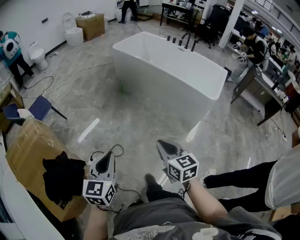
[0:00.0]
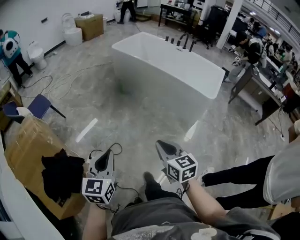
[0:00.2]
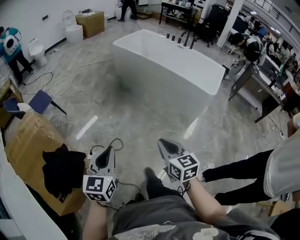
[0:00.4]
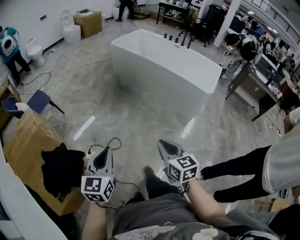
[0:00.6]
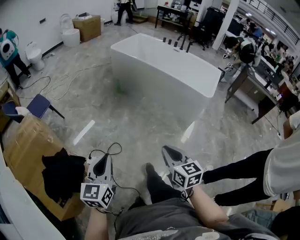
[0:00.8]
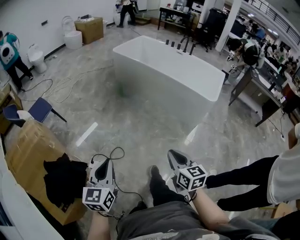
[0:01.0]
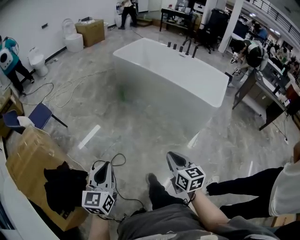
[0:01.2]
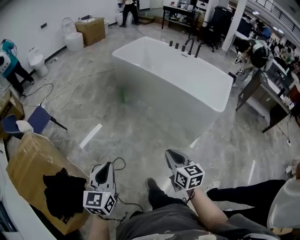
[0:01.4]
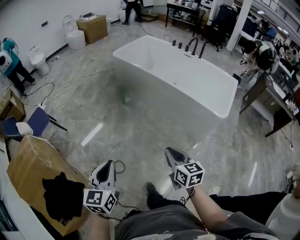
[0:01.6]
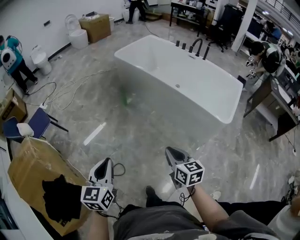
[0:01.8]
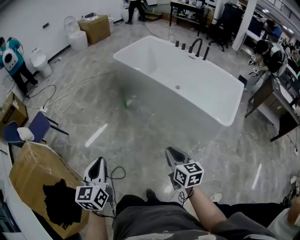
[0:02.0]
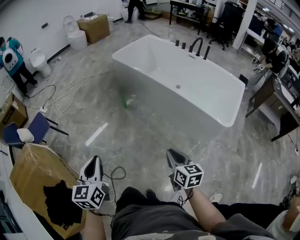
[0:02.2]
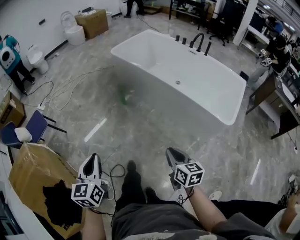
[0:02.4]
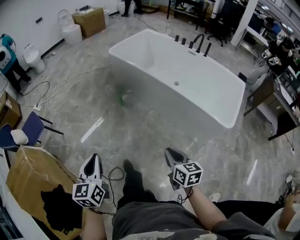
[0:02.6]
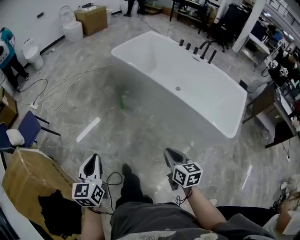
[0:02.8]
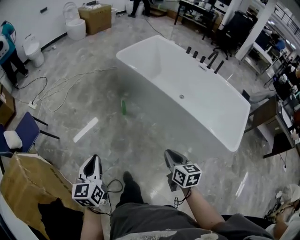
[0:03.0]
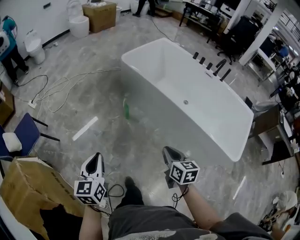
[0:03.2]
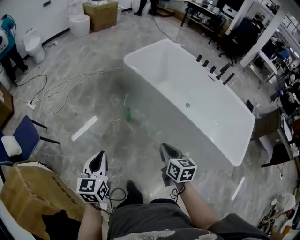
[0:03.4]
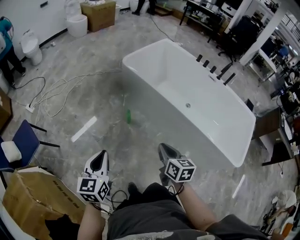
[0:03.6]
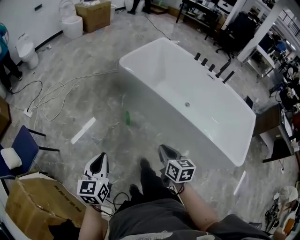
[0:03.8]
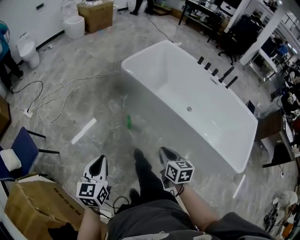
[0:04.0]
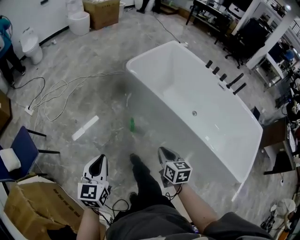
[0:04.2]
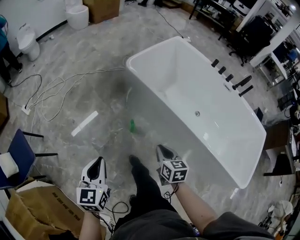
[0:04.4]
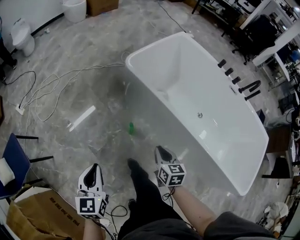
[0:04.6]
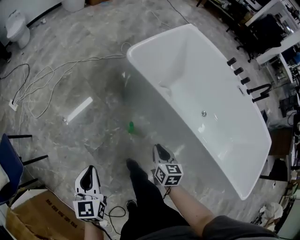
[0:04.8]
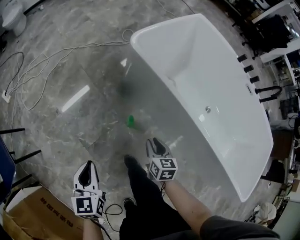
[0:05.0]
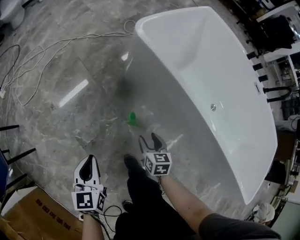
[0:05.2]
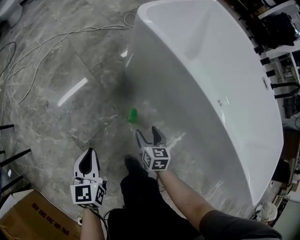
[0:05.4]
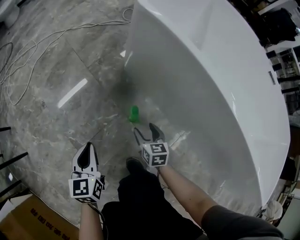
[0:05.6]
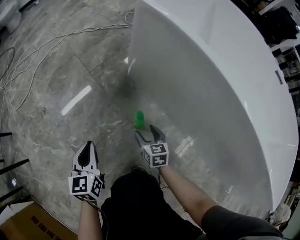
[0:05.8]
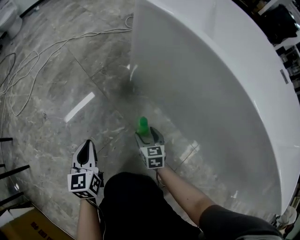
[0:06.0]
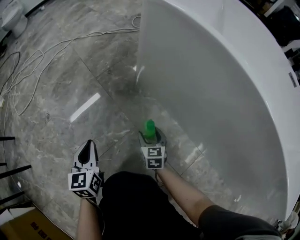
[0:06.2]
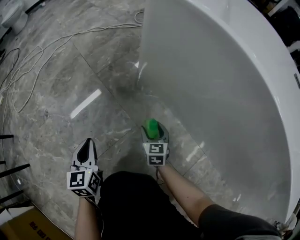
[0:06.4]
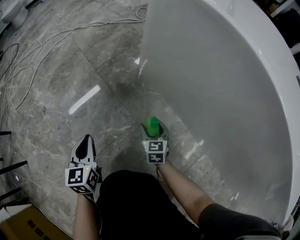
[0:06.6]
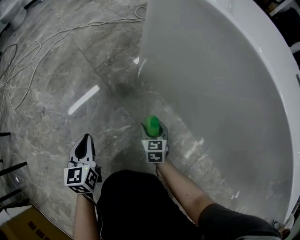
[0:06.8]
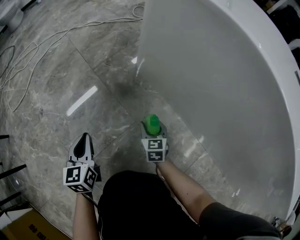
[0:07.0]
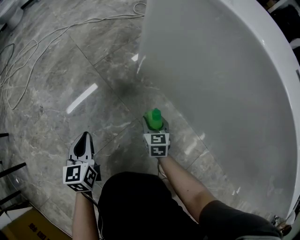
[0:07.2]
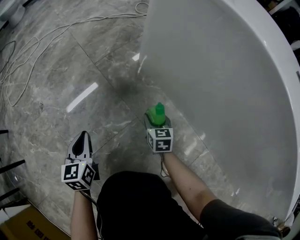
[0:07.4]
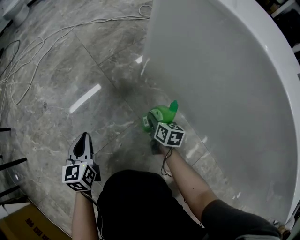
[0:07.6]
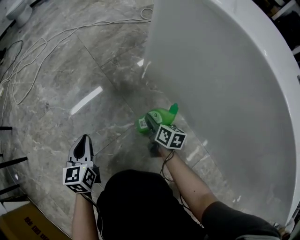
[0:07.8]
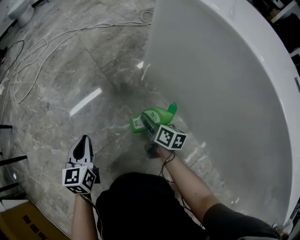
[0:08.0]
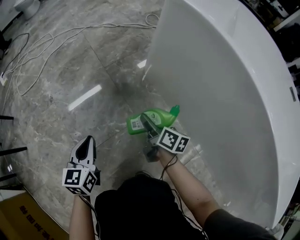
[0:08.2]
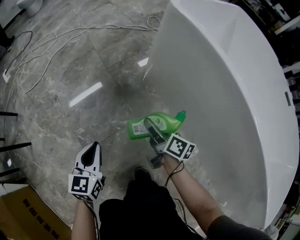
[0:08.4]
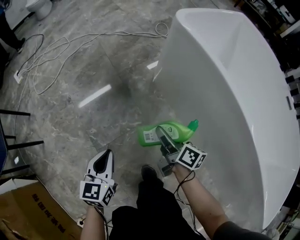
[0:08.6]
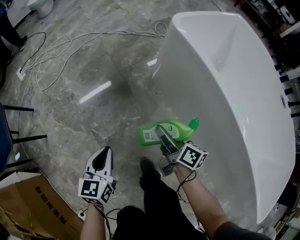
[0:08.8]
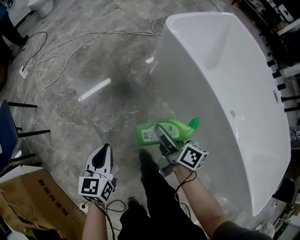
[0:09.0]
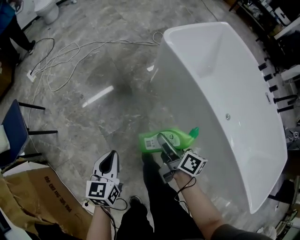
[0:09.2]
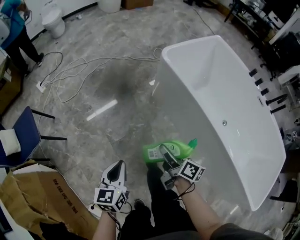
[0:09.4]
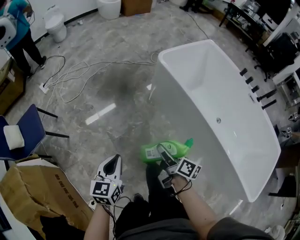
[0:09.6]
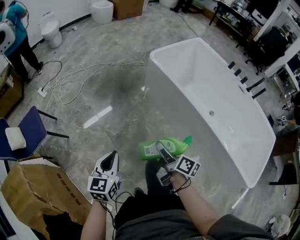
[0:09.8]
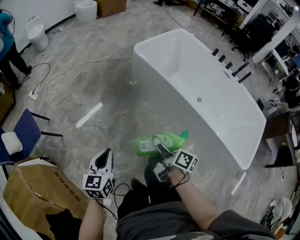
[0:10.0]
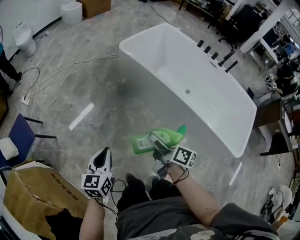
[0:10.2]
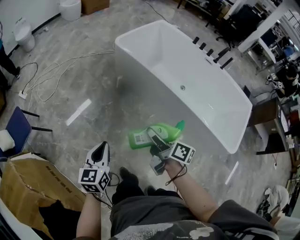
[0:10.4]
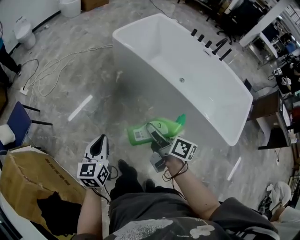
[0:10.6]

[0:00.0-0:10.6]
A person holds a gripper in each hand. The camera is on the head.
0:00.0 to 0:01.6: The left gripper goes roughly 15 cm forward. The right gripper heads forward and to the right, covering roughly 20 cm.
0:01.6 to 0:03.0: The grippers both shift forward by roughly 30 cm.
0:03.0 to 0:04.6: The two grippers travel together, forward, about 40 cm.
0:04.6 to 0:06.0: Both grippers move downward, some 50 cm. The right gripper opens up.
0:06.0 to 0:07.6: The right gripper is displaced downward and forward by about 10 cm, and rotates about 20 degrees; the left gripper goes some 10 cm downward and to the left.
0:07.6 to 0:09.0: The right gripper goes about 50 cm upward, and changes its angle by some 30 degrees; the left gripper shifts roughly 35 cm upward and backward.
0:09.0 to 0:10.6: Both grippers travel together backward and upward, approximately 50 cm.

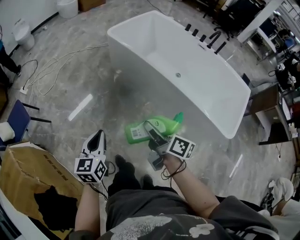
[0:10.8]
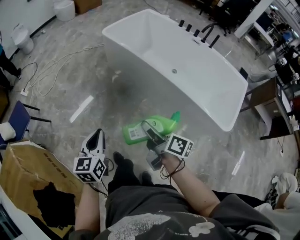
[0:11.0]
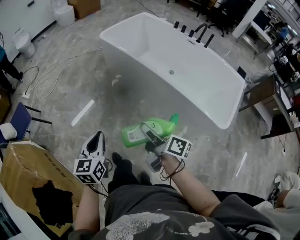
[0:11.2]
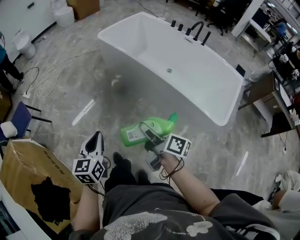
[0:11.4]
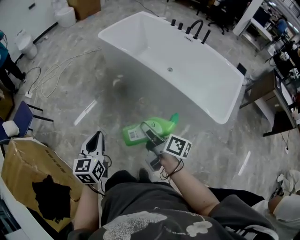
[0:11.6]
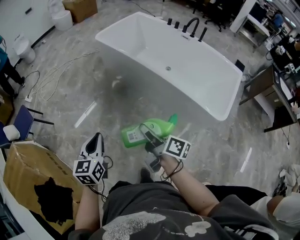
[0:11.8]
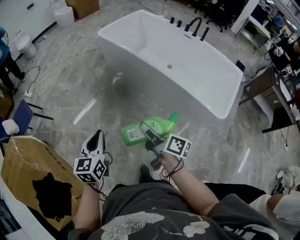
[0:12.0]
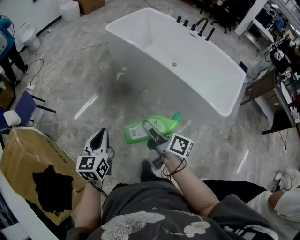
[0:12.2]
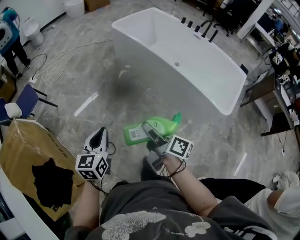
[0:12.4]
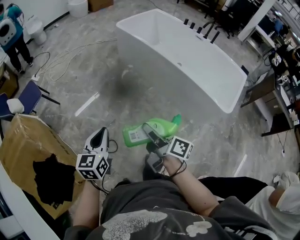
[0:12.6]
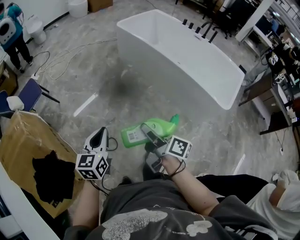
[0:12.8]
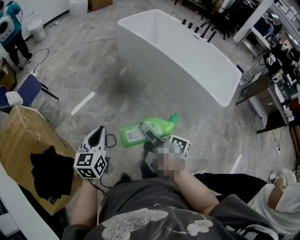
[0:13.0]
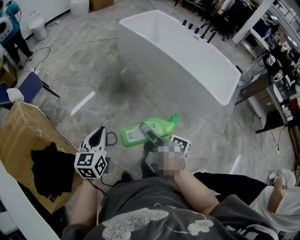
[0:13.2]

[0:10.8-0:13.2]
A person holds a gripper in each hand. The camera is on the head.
0:10.8 to 0:12.0: Both grippers move backward and to the right, some 20 cm.
0:12.0 to 0:13.2: The grippers both shift to the left and backward by about 30 cm.

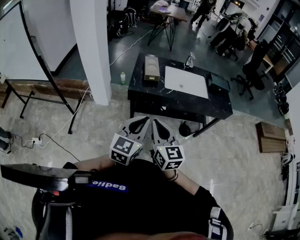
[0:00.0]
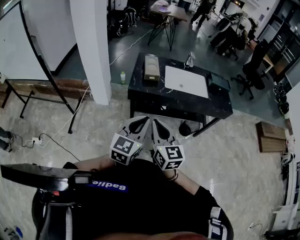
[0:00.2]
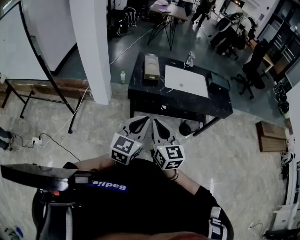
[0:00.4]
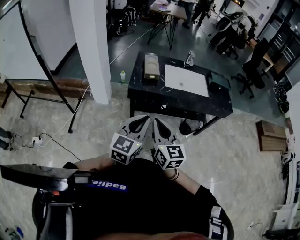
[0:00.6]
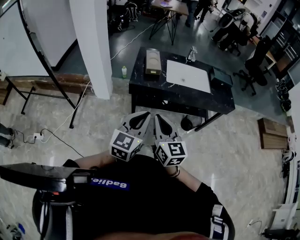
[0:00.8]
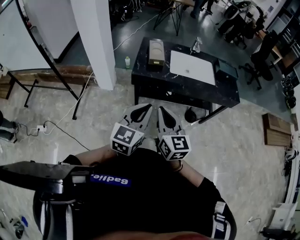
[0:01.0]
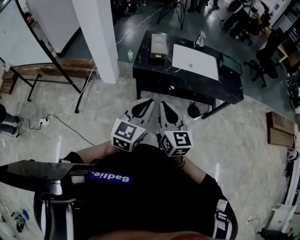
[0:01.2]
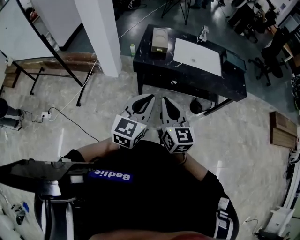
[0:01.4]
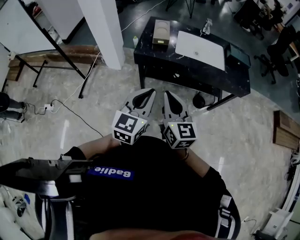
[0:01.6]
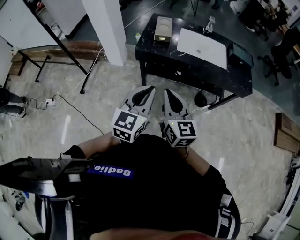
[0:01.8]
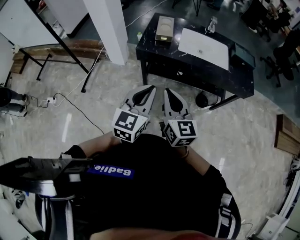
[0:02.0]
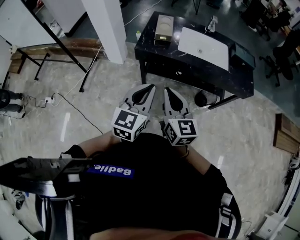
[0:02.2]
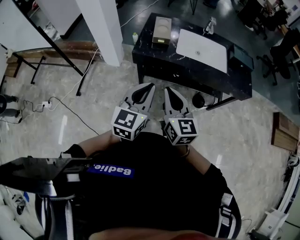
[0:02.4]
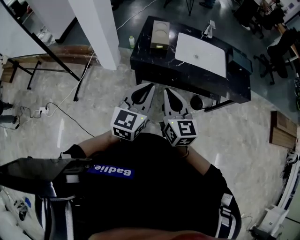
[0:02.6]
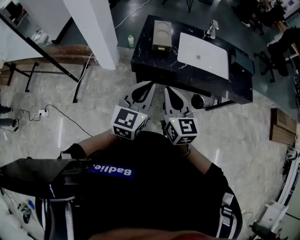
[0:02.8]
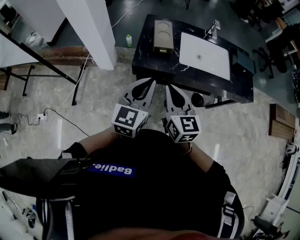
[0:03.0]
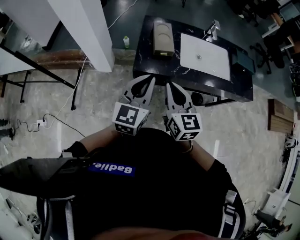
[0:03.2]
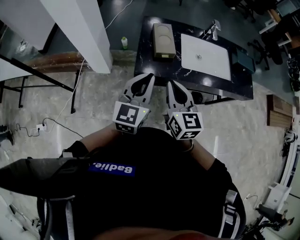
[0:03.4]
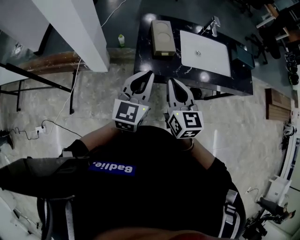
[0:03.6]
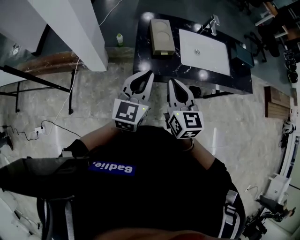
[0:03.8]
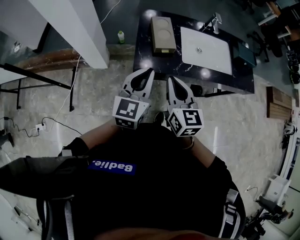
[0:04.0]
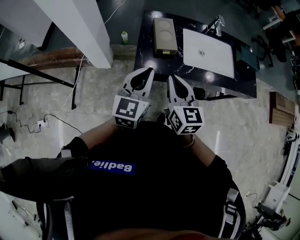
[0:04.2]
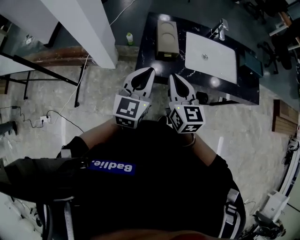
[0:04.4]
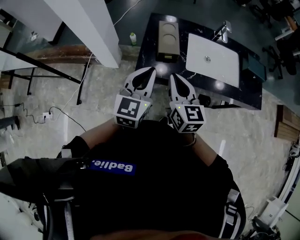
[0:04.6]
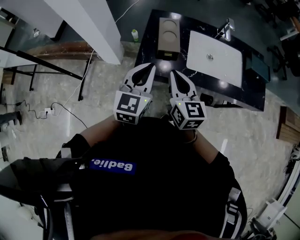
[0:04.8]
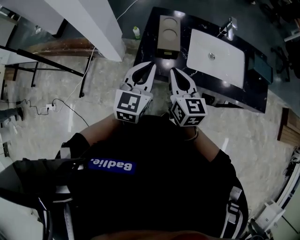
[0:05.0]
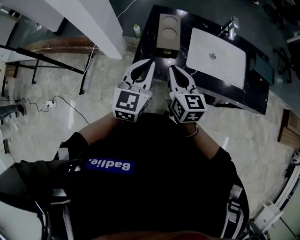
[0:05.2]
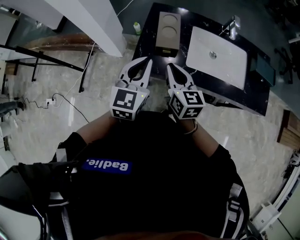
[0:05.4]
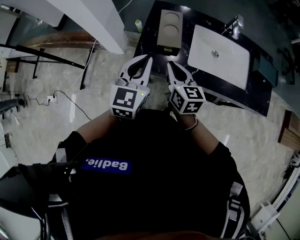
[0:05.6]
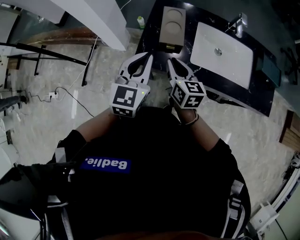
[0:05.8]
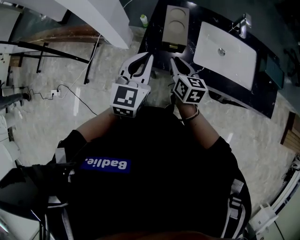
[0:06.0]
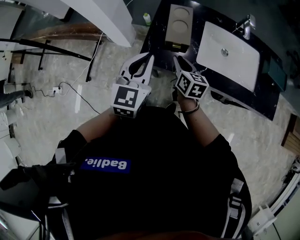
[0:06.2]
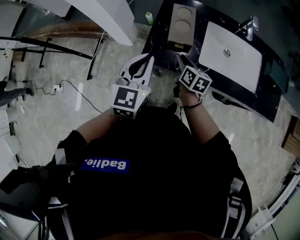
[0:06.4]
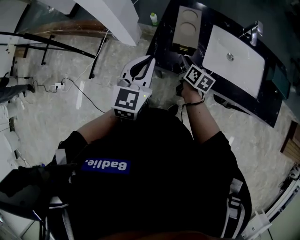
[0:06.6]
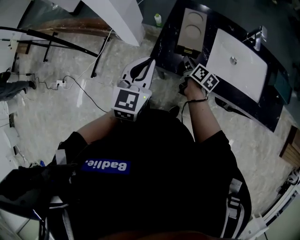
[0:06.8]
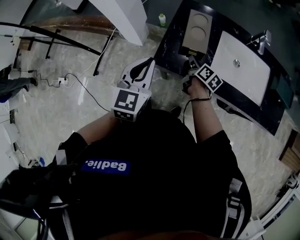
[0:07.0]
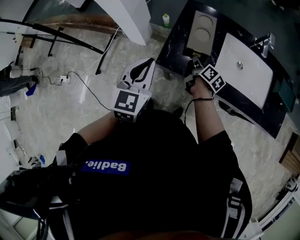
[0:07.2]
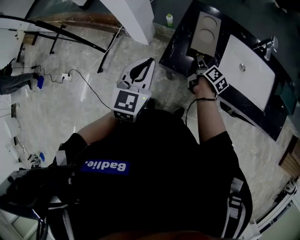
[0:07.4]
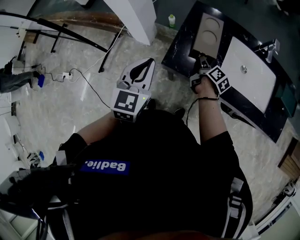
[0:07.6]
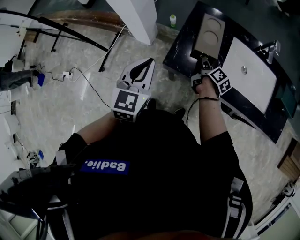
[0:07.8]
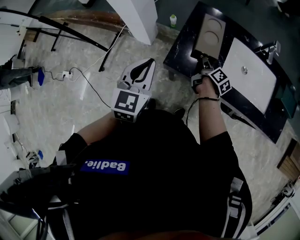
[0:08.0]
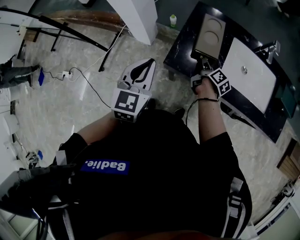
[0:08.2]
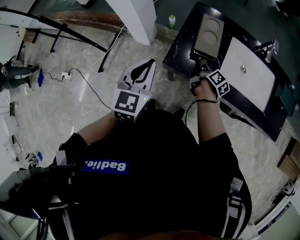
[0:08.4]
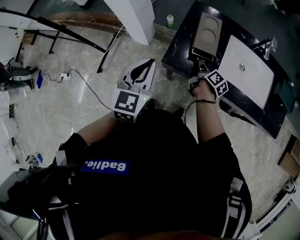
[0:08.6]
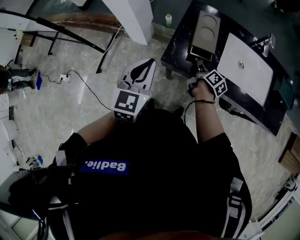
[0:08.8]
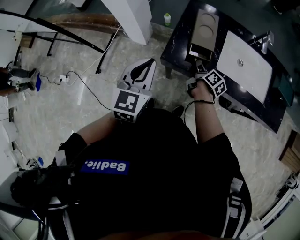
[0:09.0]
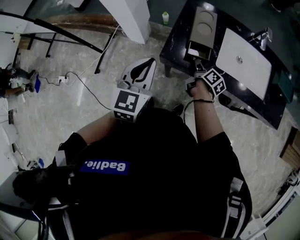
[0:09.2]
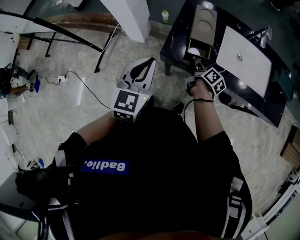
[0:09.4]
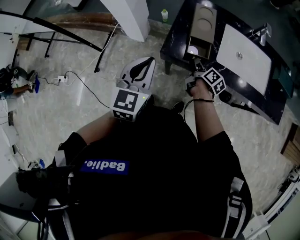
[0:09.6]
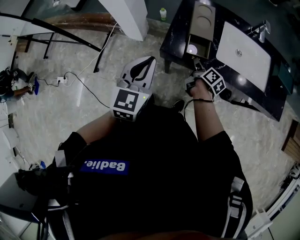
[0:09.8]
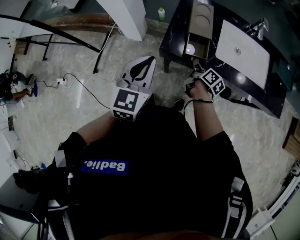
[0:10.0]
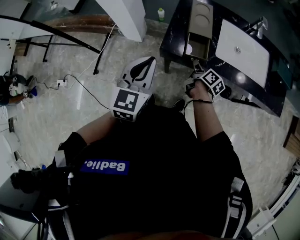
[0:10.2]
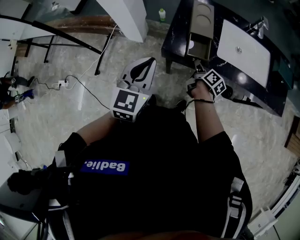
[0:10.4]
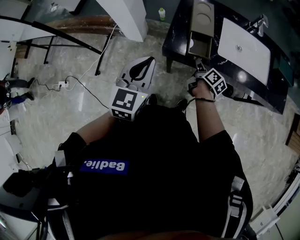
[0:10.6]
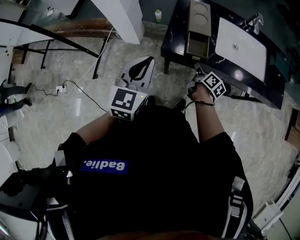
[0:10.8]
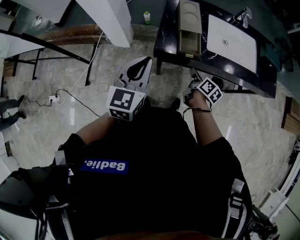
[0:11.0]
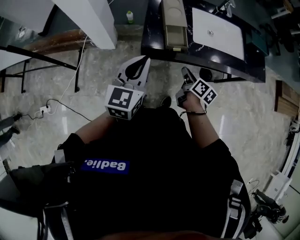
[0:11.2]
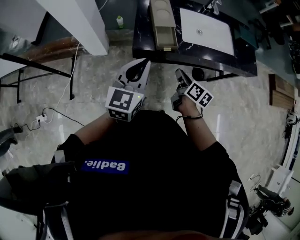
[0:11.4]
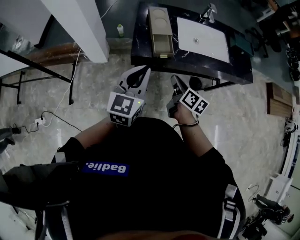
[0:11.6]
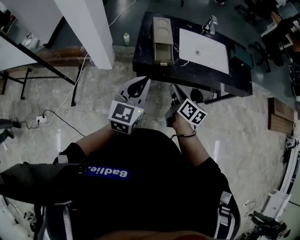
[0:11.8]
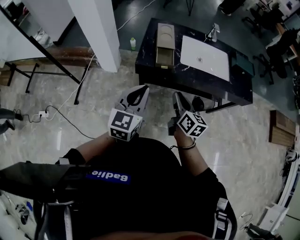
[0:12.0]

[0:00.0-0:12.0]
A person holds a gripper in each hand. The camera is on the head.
0:00.0 to 0:01.6: The two grippers go about 5 cm to the right.
0:01.6 to 0:03.0: Both grippers travel together forward, approximately 20 cm.
0:03.0 to 0:04.4: The two grippers go roughly 10 cm forward.
0:04.4 to 0:06.0: The right gripper travels downward and forward by approximately 15 cm, and swivels roughly 20 degrees. Meanwhile the left gripper goes some 5 cm forward.
0:06.0 to 0:07.6: The left gripper travels to the left by approximately 10 cm. The right gripper goes some 15 cm downward and forward, and turns by roughly 40 degrees.
0:07.6 to 0:09.0: The right gripper goes roughly 5 cm backward.
0:09.0 to 0:10.4: The right gripper moves backward, roughly 5 cm.
0:10.4 to 0:12.0: The left gripper moves backward and to the right, roughly 15 cm, while the right gripper heads backward and upward, covering some 30 cm, and changes its angle by some 40 degrees.
